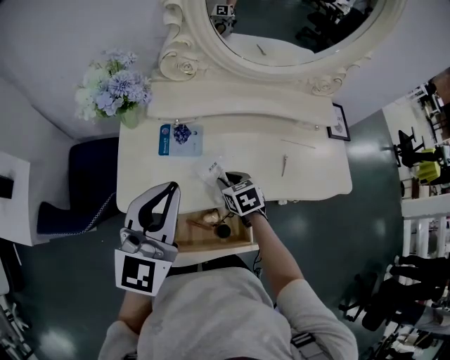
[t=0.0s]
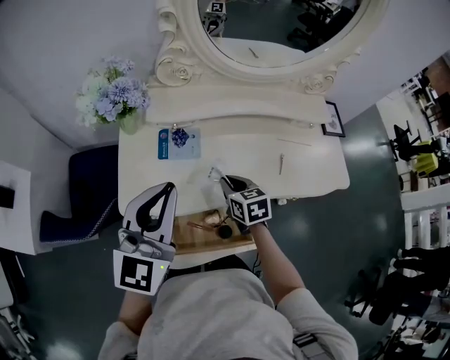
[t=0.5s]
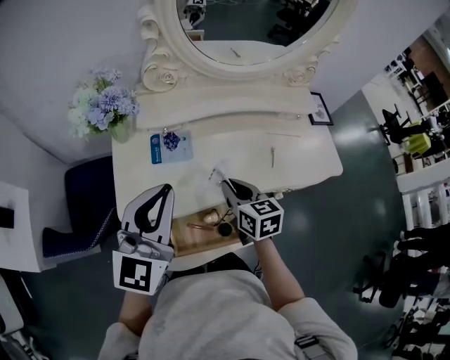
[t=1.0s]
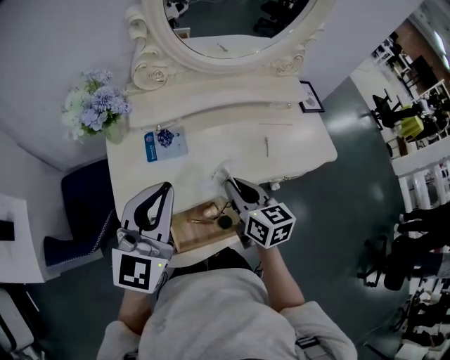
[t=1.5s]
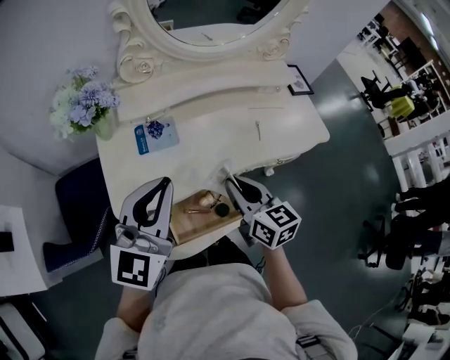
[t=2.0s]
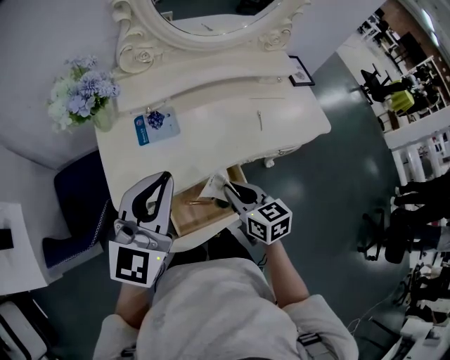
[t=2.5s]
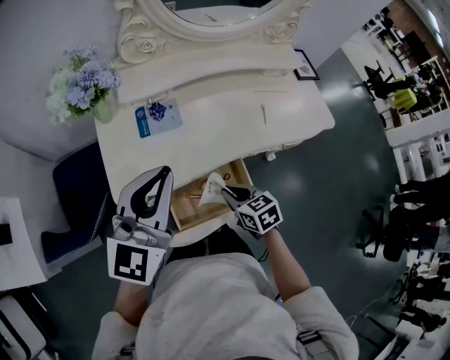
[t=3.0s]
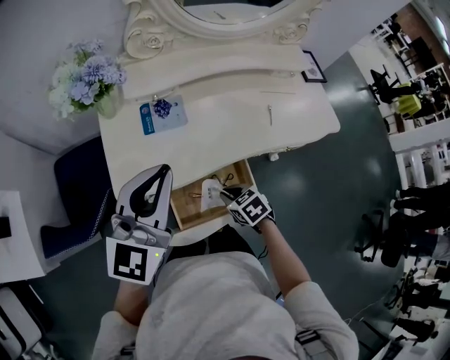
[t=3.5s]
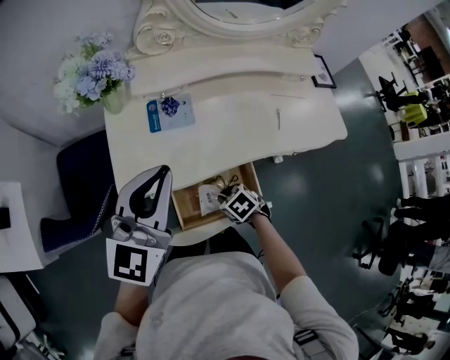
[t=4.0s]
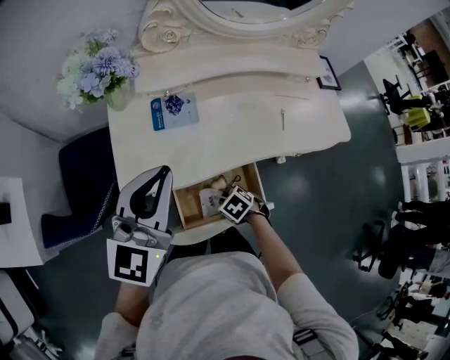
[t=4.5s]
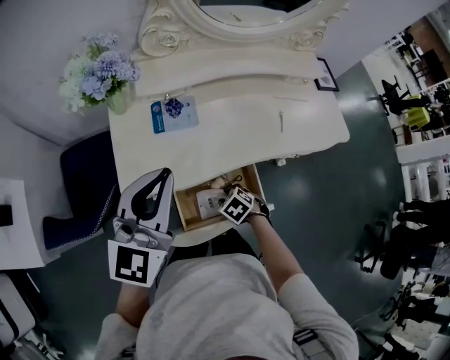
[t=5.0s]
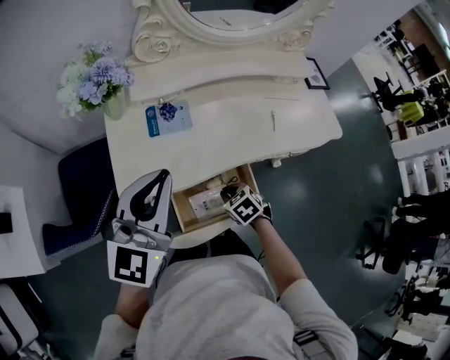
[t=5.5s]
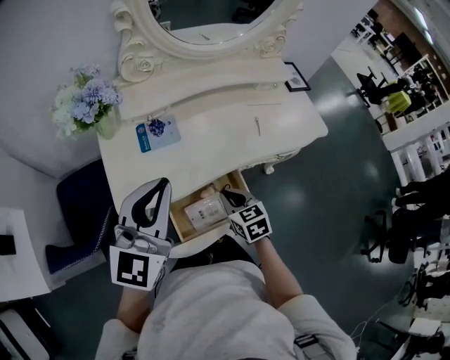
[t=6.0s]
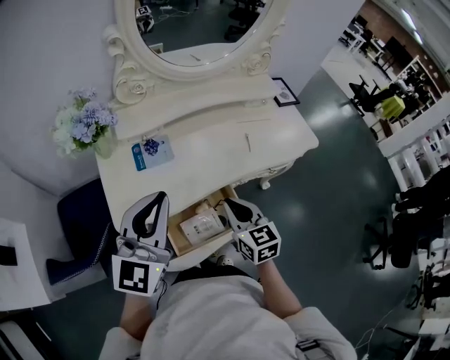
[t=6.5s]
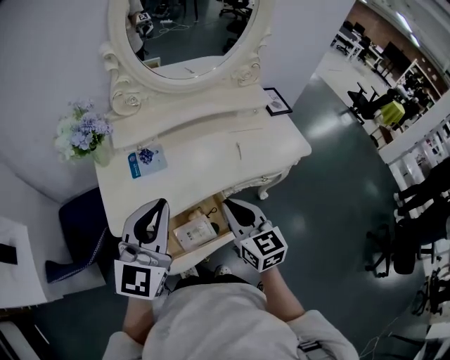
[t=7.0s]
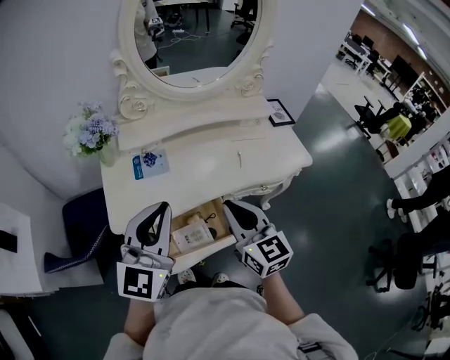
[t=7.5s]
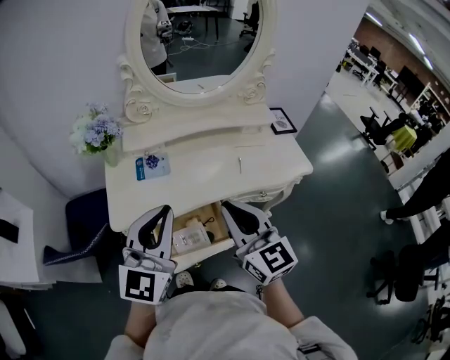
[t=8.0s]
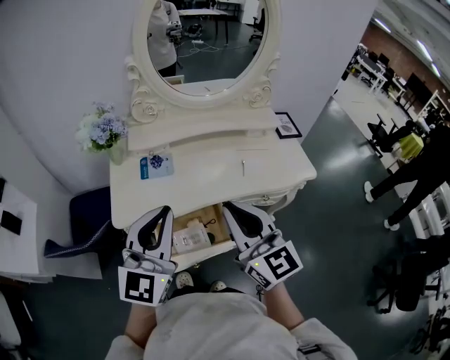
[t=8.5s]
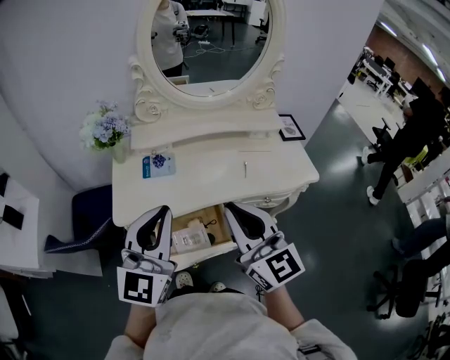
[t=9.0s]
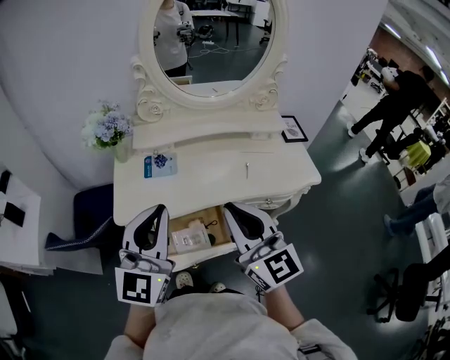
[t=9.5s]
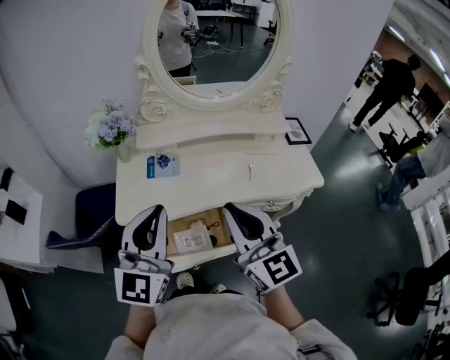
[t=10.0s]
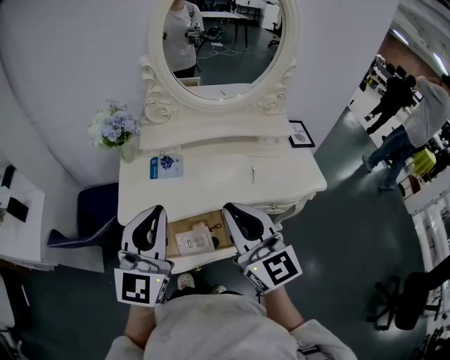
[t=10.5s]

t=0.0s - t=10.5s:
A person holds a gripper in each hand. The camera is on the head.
t=0.0s - t=2.0s: The right gripper goes roughly 20 cm upward and backward, and points its fingers roughly 30 degrees further upward.
t=2.0s - t=4.0s: The right gripper heads downward, covering approximately 25 cm, and angles its fingers downward, by roughly 50 degrees.
t=4.0s - t=6.5s: The right gripper moves upward, about 20 cm, and points its fingers approximately 50 degrees further upward.
t=6.5s - t=8.5s: The right gripper moves upward, approximately 20 cm, and rotates roughly 30 degrees, while the left gripper shifts approximately 10 cm backward, to the right and upward.
t=8.5s - t=10.5s: The grippers stay close to where they were, moving slightly.

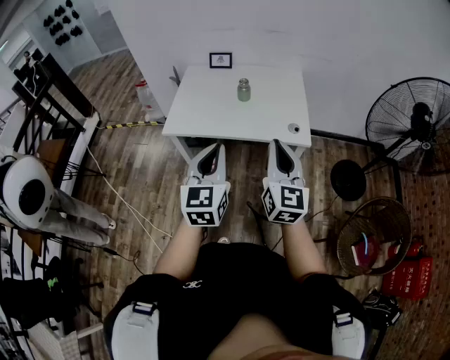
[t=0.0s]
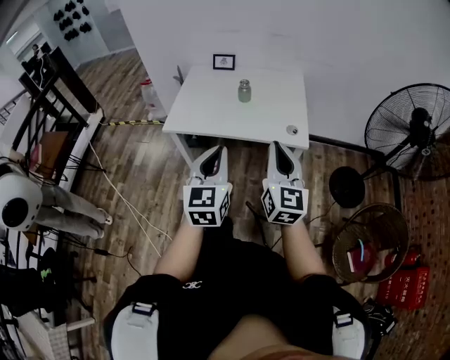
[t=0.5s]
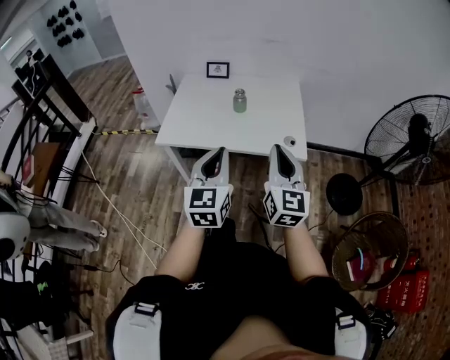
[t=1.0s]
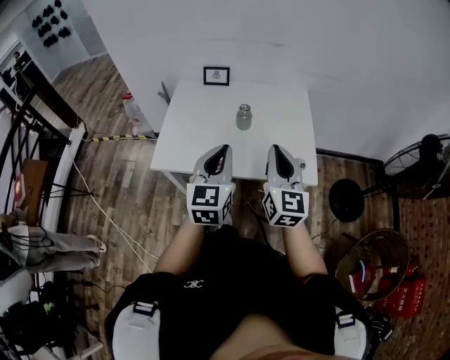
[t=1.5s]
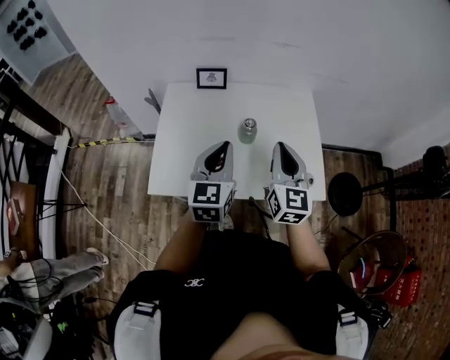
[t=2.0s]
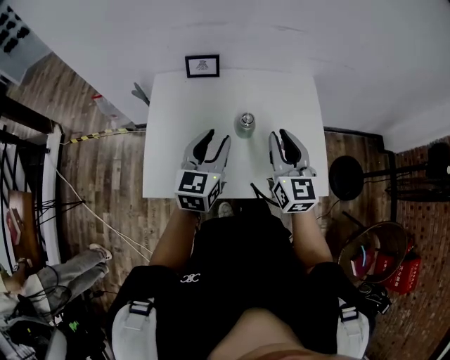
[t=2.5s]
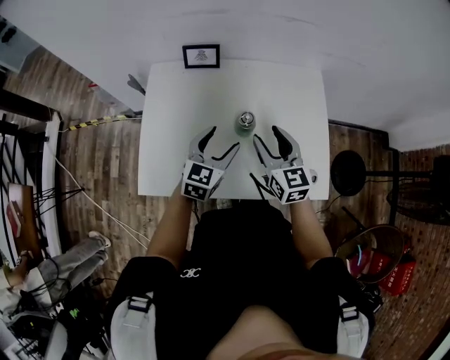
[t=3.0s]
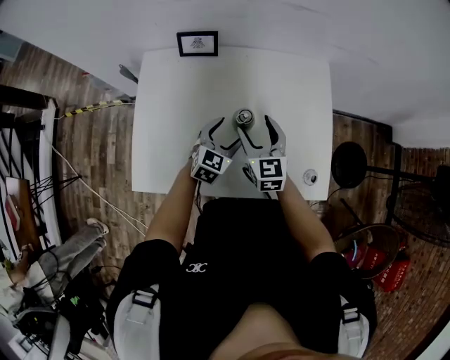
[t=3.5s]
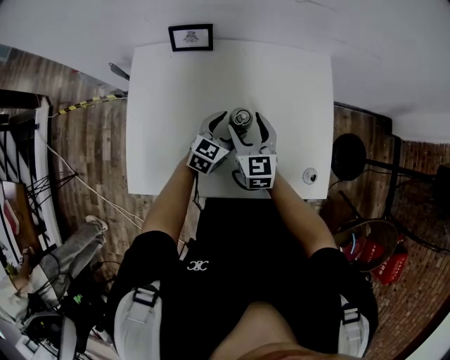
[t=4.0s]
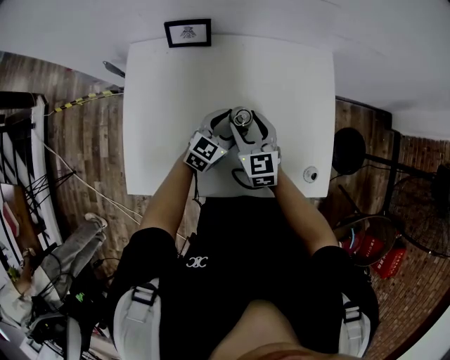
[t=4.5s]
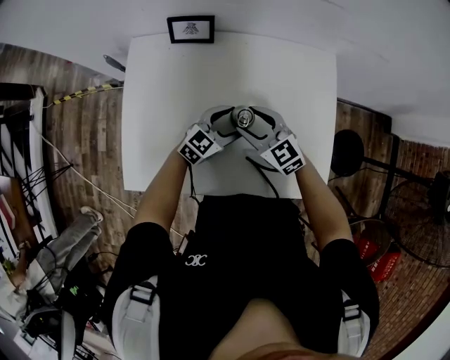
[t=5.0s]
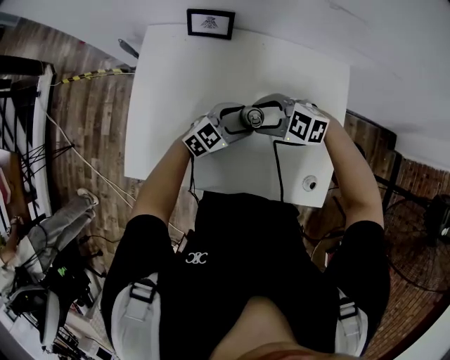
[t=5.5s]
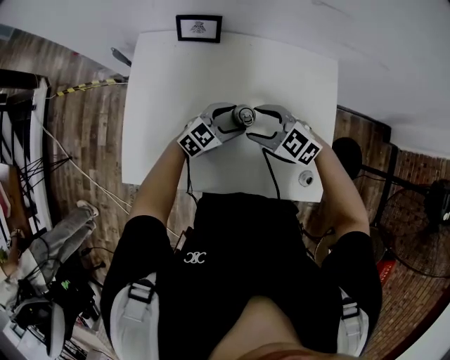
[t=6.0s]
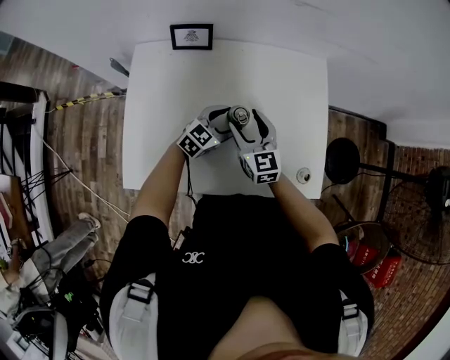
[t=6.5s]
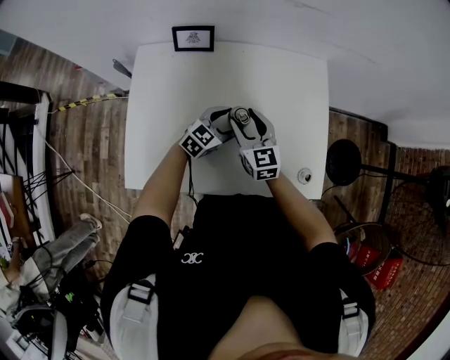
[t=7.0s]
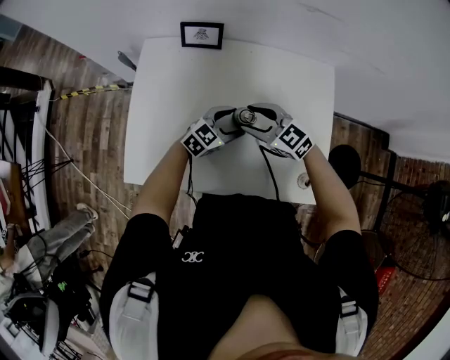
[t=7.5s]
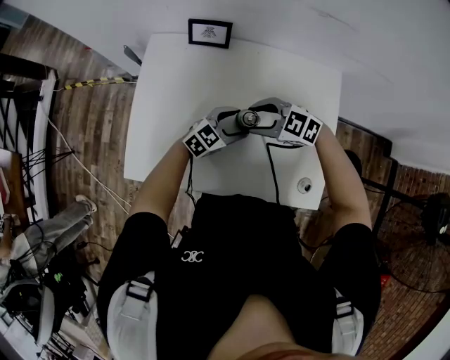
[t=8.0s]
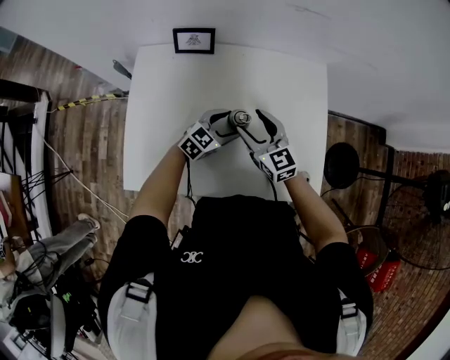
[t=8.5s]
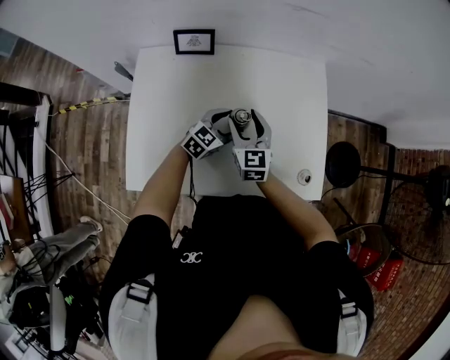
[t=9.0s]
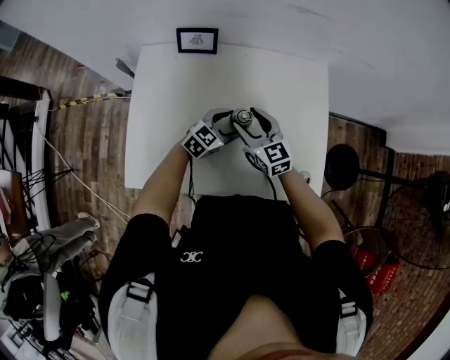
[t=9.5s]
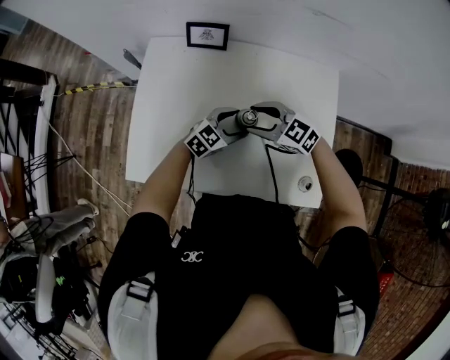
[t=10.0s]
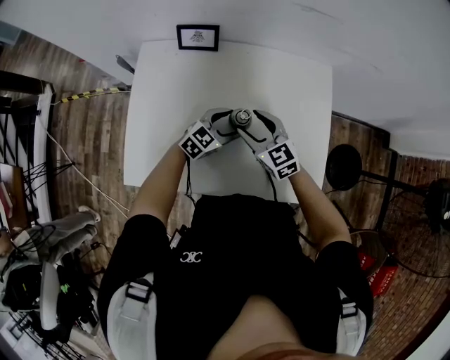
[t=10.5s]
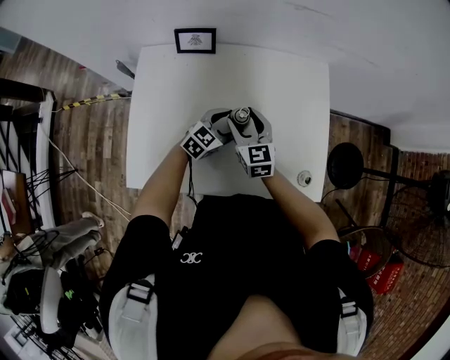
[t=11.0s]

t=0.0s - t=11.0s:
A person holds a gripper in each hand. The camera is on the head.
t=0.0s - t=2.0s: Both grippers travel together forward, roughly 35 cm.
t=2.0s - t=3.5s: Both grippers move downward and forward, approximately 25 cm. The right gripper swivels approximately 20 degrees, and opens. The left gripper changes its angle by approximately 30 degrees, and opens.
t=3.5s - t=5.5s: The left gripper swivels about 20 degrees, while the right gripper shifts by approximately 5 cm, and rotates about 80 degrees.
t=5.5s - t=7.5s: The right gripper changes its angle by roughly 30 degrees.
t=7.5s - t=9.0s: The right gripper turns by about 50 degrees.

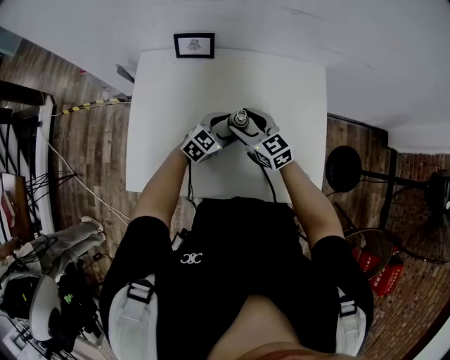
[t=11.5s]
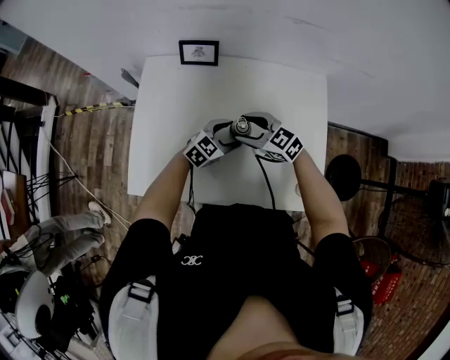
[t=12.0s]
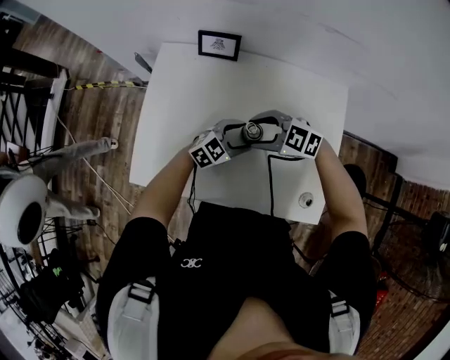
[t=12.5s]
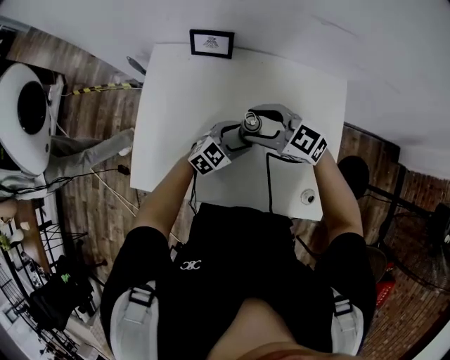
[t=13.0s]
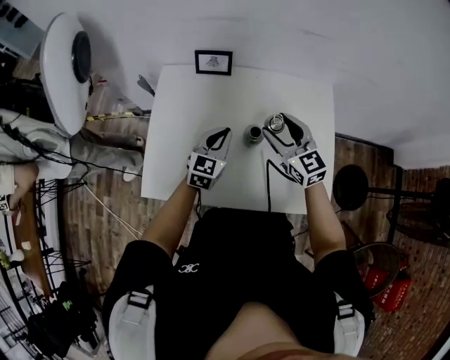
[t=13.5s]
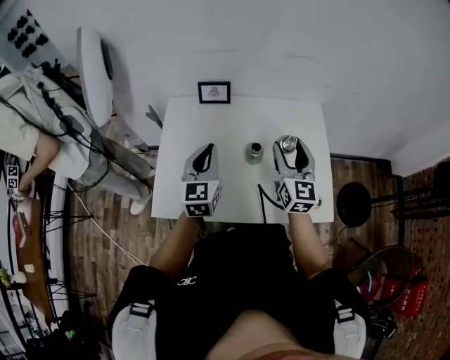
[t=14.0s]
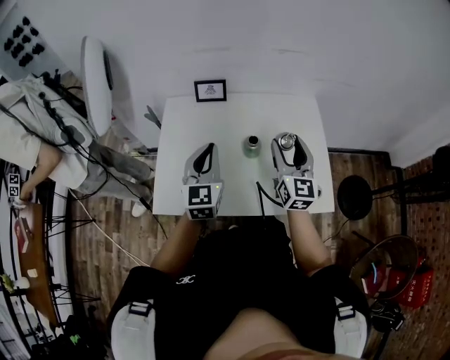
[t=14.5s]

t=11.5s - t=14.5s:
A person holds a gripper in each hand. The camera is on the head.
t=11.5s - t=13.0s: The right gripper moves upward, about 5 cm, and rotates approximately 30 degrees.
t=13.0s - t=14.5s: The left gripper is displaced upward by roughly 25 cm, swivels roughly 50 degrees, and closes. The right gripper ends up approximately 20 cm from where it was, and turns by some 80 degrees.

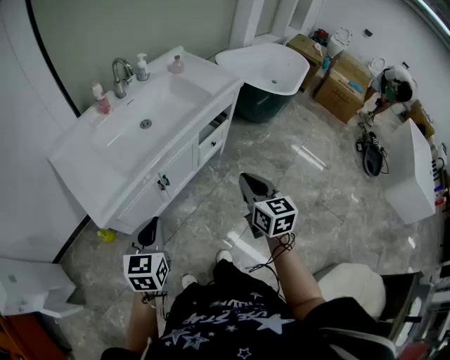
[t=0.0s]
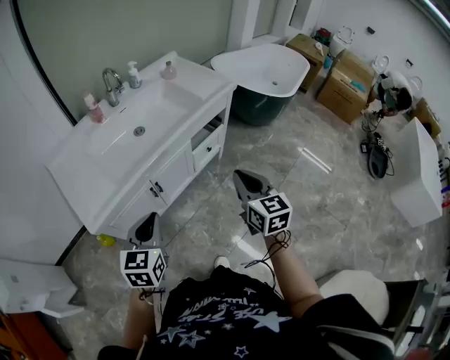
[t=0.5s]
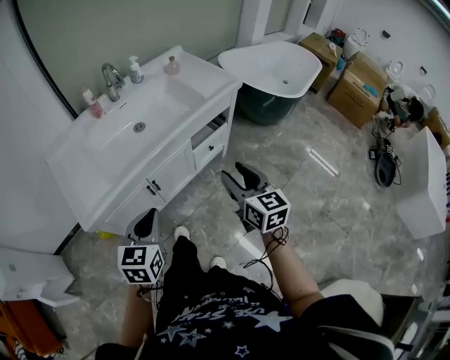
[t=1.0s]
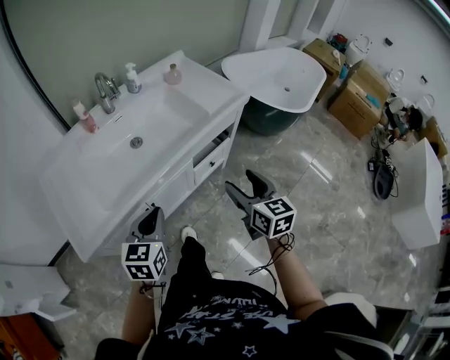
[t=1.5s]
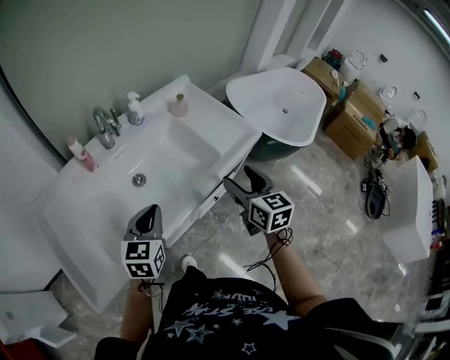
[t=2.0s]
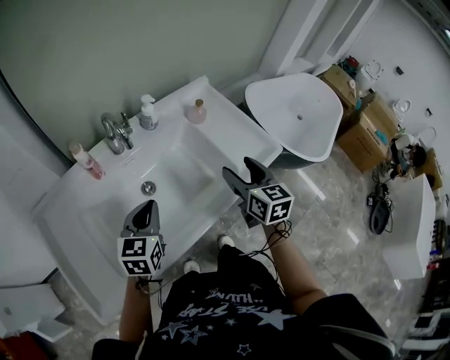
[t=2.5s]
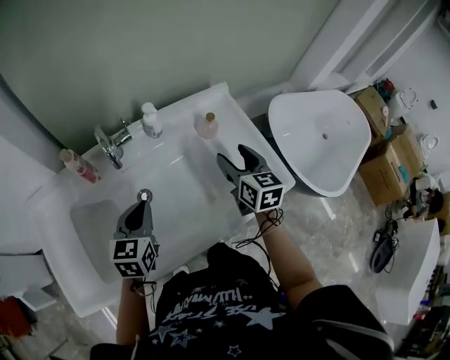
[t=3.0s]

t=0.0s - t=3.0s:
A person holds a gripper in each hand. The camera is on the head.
t=0.0s - t=1.5s: Both grippers move forward and to the right, roughly 20 cm. The right gripper opens its fingers.
t=1.5s - t=3.0s: Both grippers travel together forward, some 40 cm.
